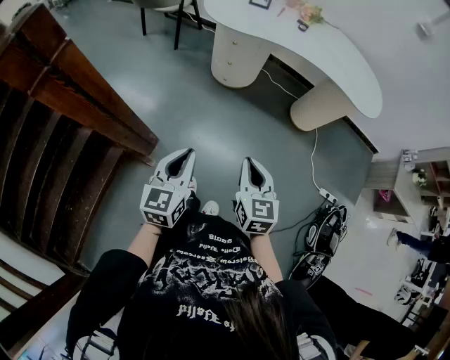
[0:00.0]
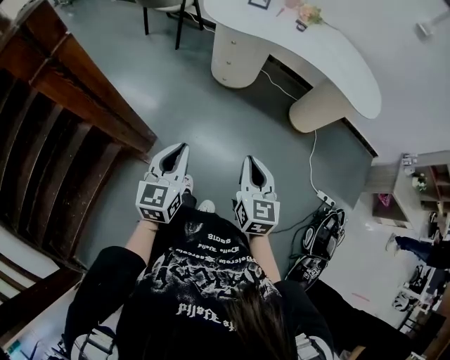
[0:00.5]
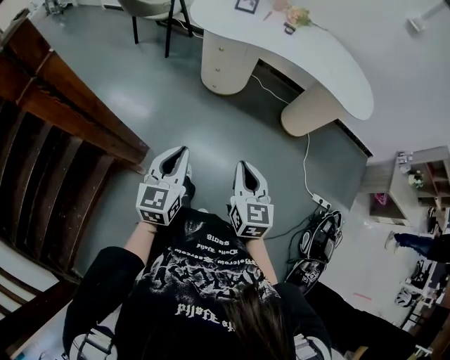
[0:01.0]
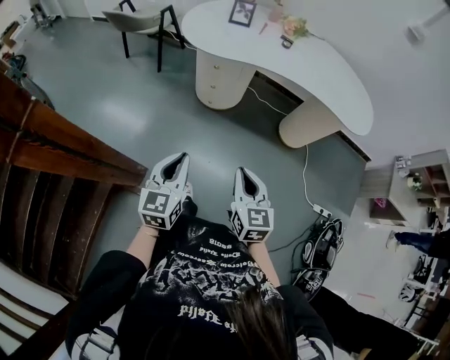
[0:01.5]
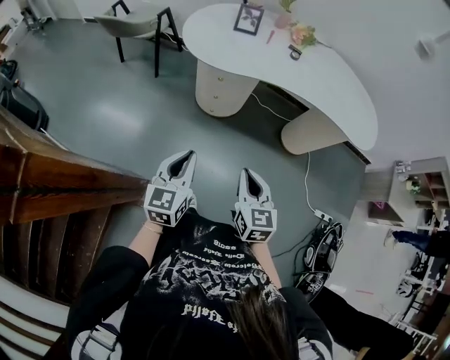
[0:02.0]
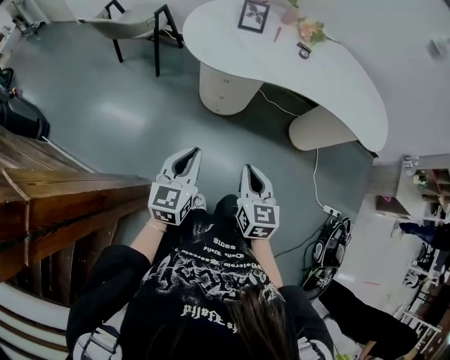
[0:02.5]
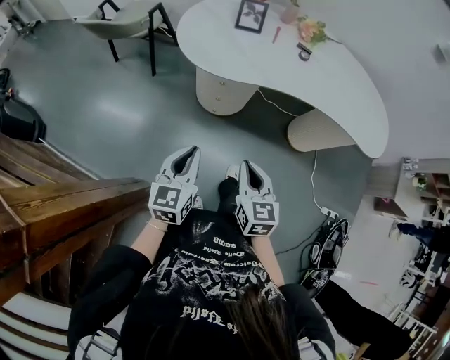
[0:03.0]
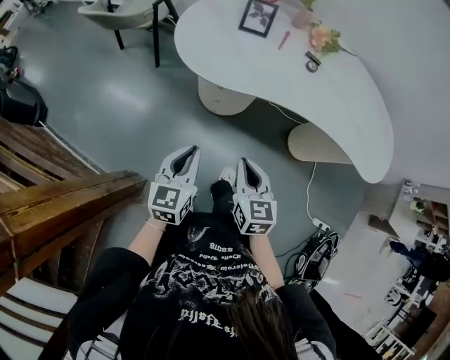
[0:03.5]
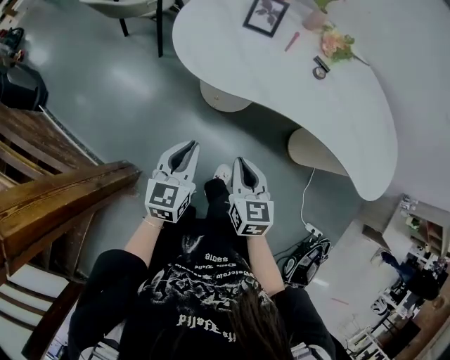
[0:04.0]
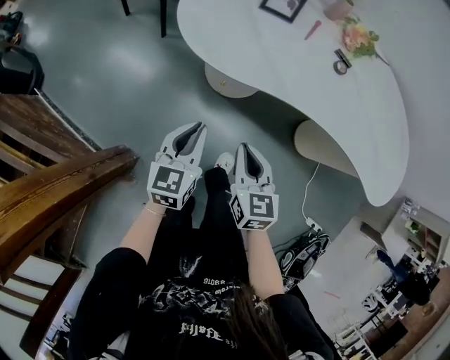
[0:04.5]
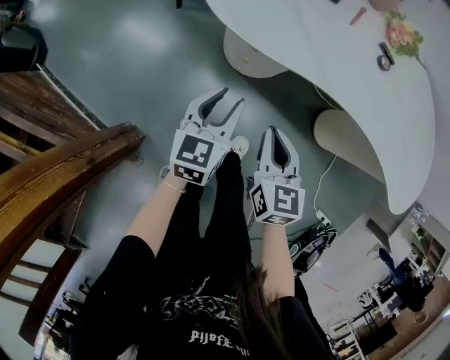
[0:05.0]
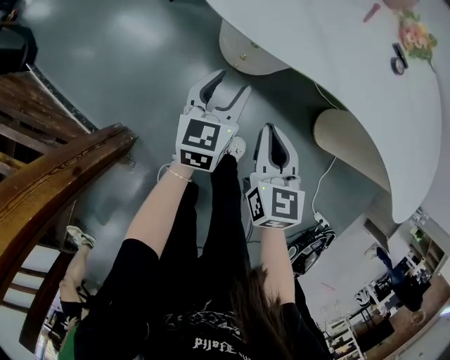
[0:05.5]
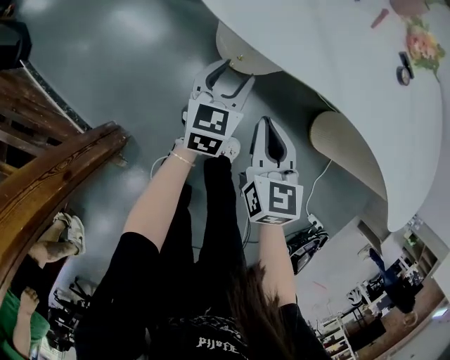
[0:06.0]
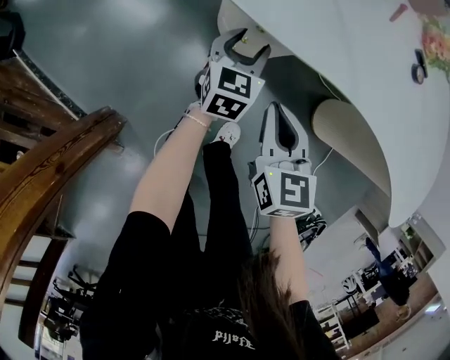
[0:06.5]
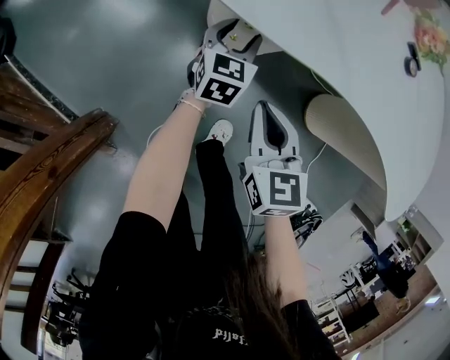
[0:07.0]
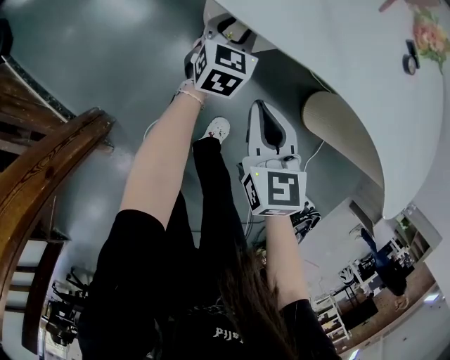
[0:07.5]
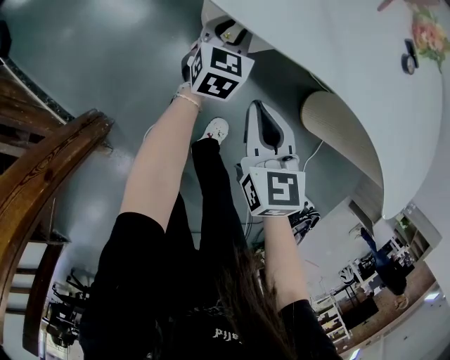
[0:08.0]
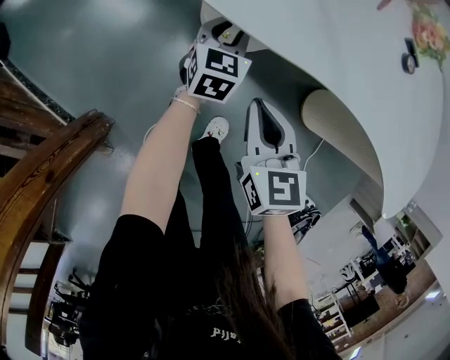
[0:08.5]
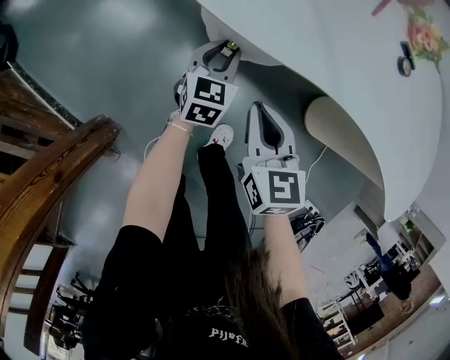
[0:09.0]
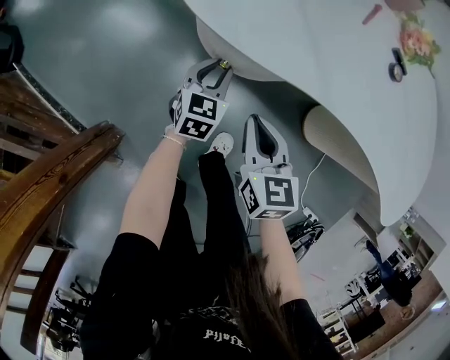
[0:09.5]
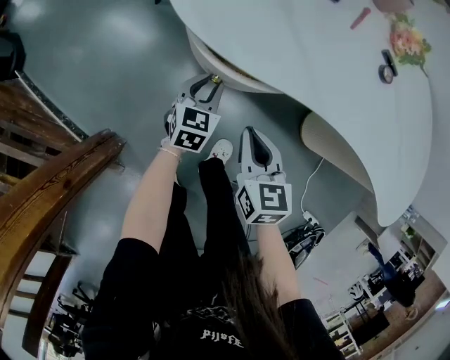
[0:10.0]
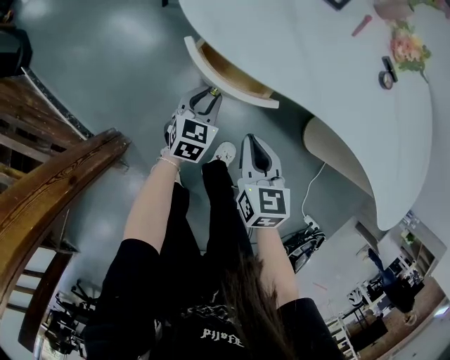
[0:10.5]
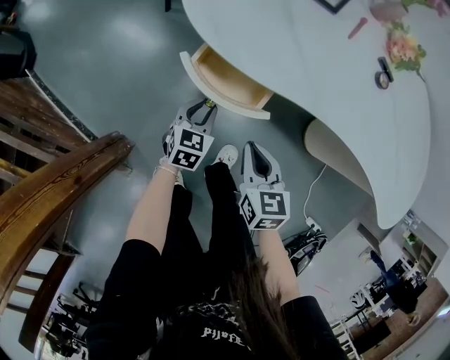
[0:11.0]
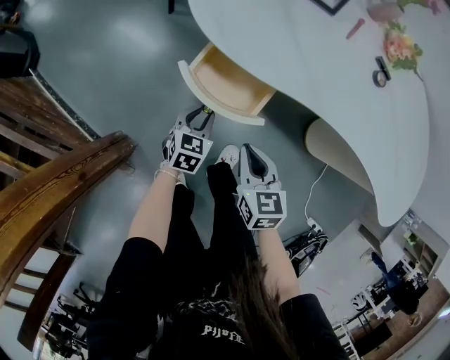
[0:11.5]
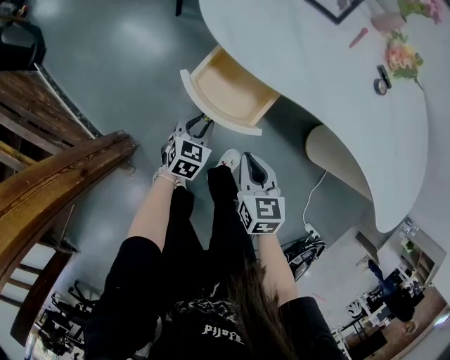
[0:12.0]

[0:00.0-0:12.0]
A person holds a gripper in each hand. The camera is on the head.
0:00.0 to 0:02.0: Both grippers travel together forward, some 25 cm.
0:02.0 to 0:04.0: Both grippers move forward, about 25 cm.
0:04.0 to 0:06.0: Both grippers travel together downward and forward, roughly 25 cm. The left gripper opens its fingers.
0:06.0 to 0:08.0: The left gripper shifts some 10 cm forward and downward, and closes.
0:08.0 to 0:10.0: The left gripper travels backward by about 10 cm.
0:10.0 to 0:12.0: The left gripper heads backward, covering about 10 cm, while the right gripper travels backward by approximately 5 cm.

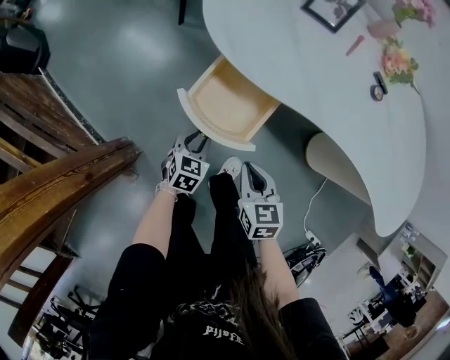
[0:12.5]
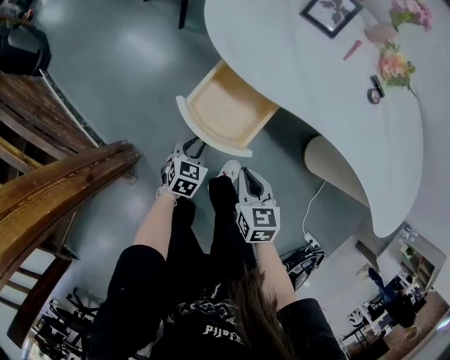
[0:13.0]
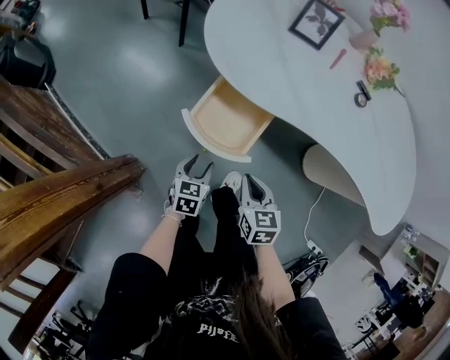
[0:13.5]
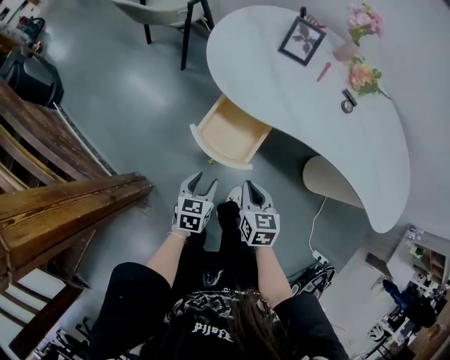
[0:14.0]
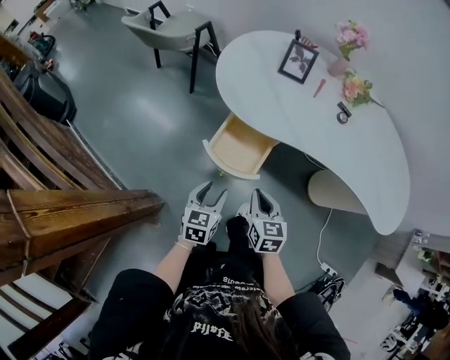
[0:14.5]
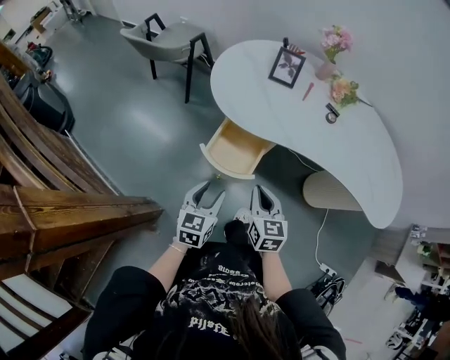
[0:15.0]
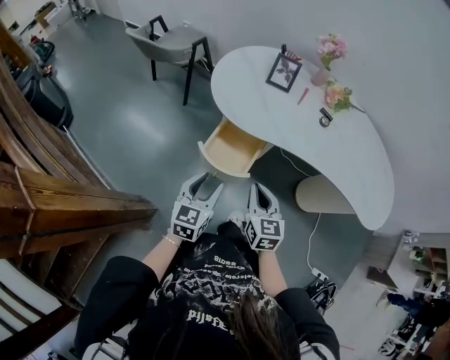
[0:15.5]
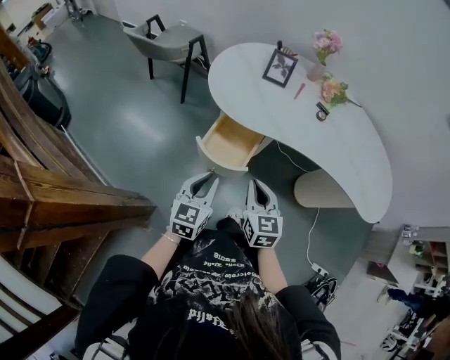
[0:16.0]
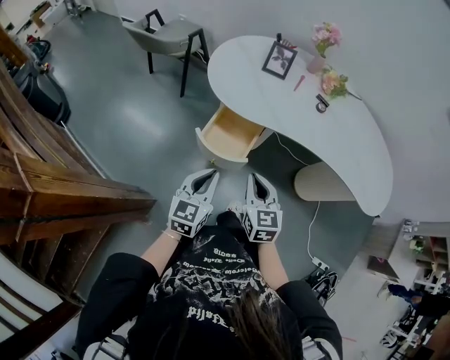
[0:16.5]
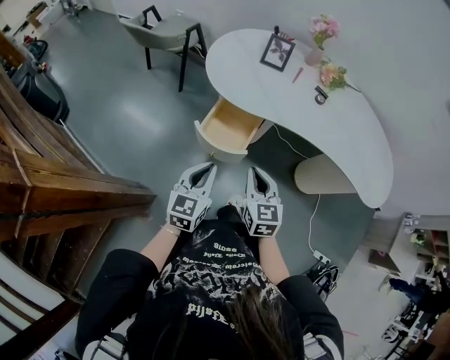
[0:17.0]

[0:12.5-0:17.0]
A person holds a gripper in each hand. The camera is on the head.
0:12.5 to 0:14.5: The left gripper shifts about 20 cm upward, and opens, while the right gripper shifts some 15 cm upward.
0:14.5 to 0:17.0: The grippers both shift upward and backward by approximately 15 cm. The left gripper closes its fingers.

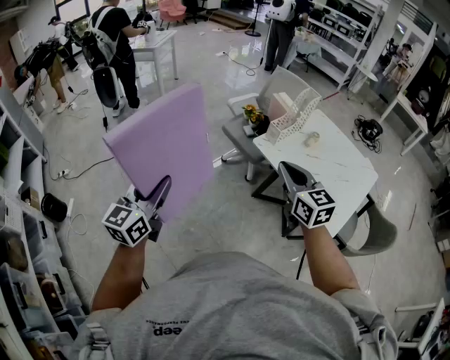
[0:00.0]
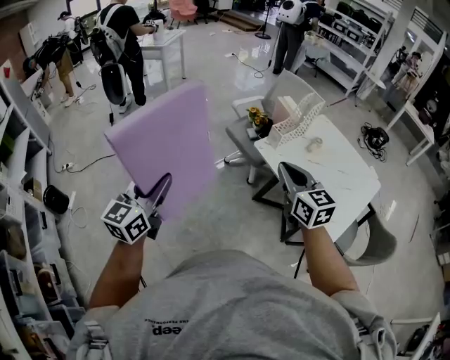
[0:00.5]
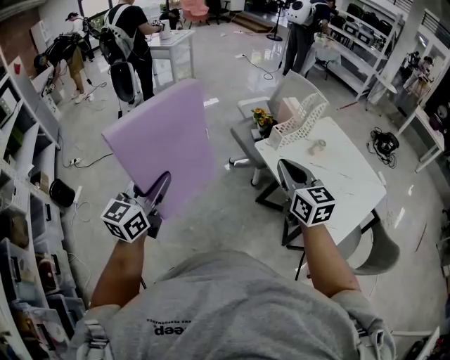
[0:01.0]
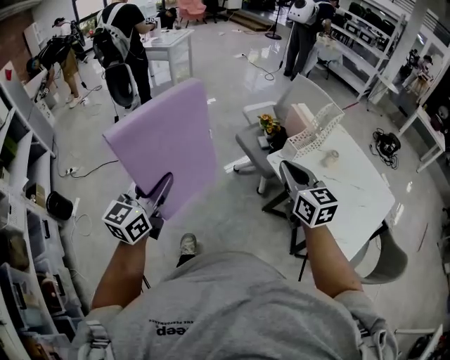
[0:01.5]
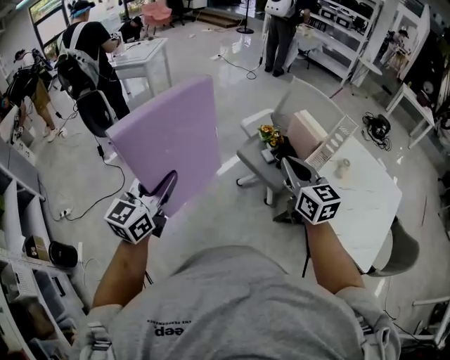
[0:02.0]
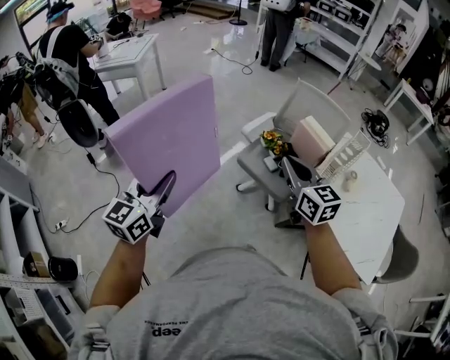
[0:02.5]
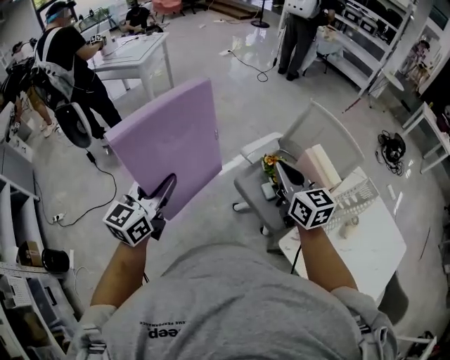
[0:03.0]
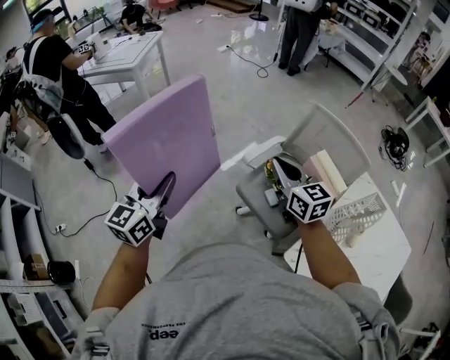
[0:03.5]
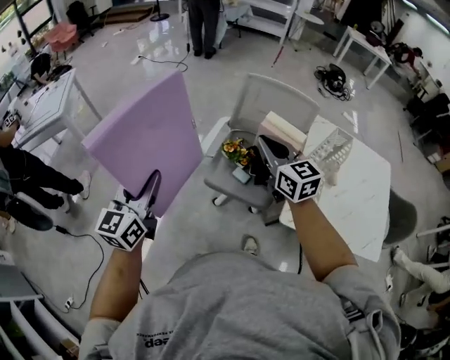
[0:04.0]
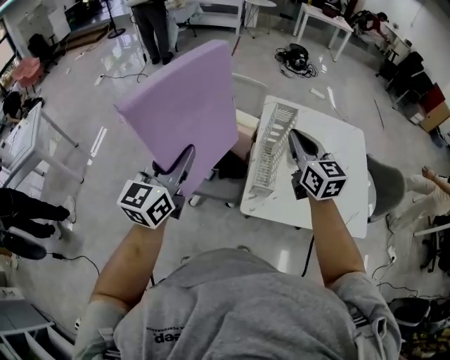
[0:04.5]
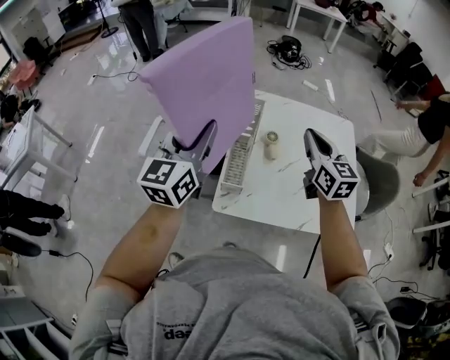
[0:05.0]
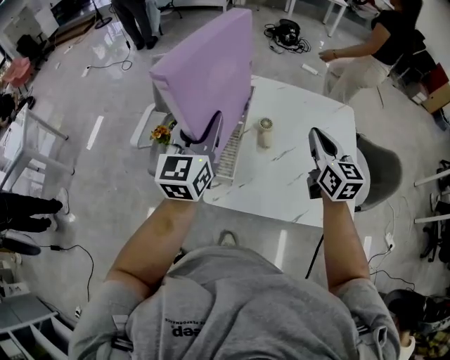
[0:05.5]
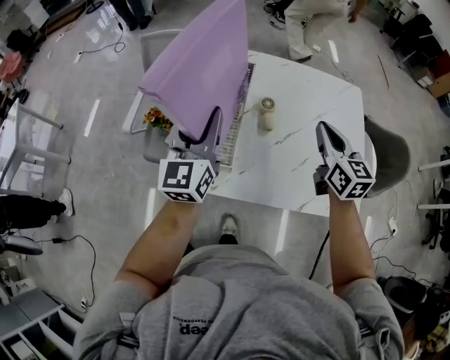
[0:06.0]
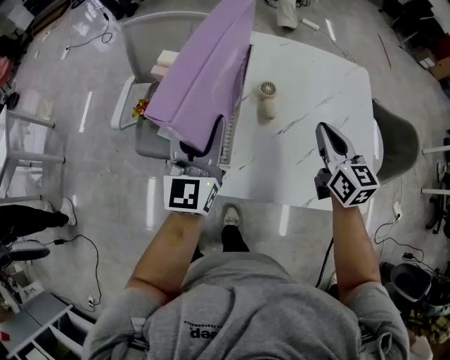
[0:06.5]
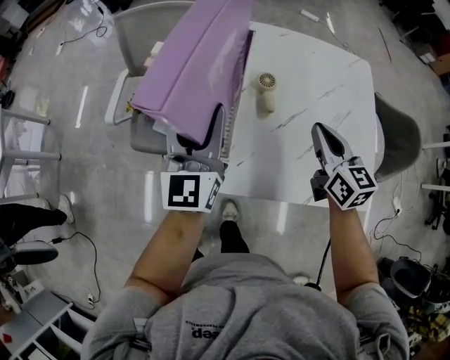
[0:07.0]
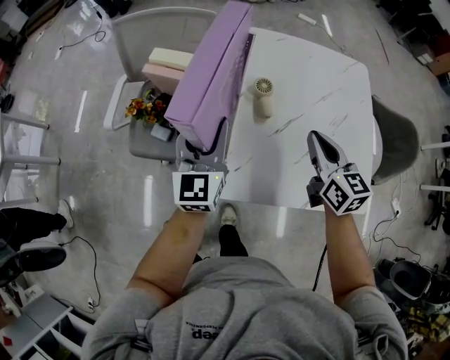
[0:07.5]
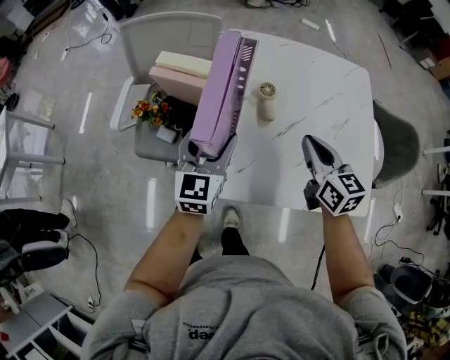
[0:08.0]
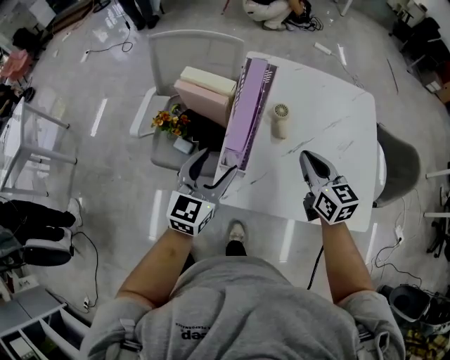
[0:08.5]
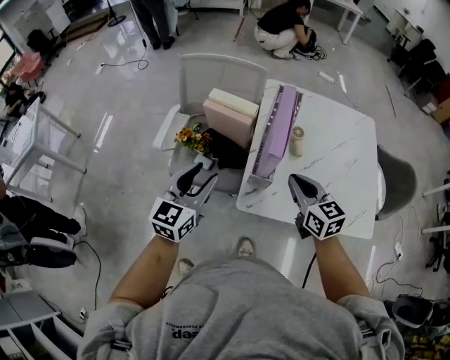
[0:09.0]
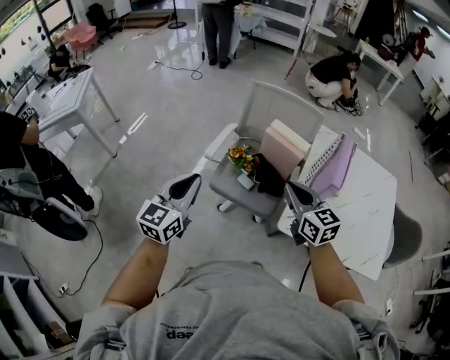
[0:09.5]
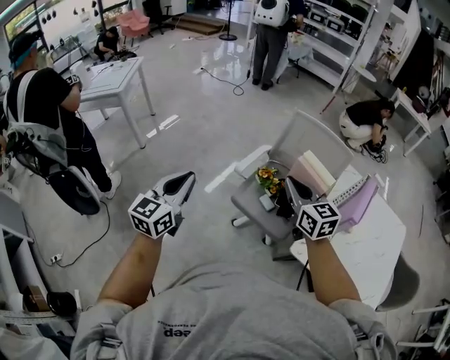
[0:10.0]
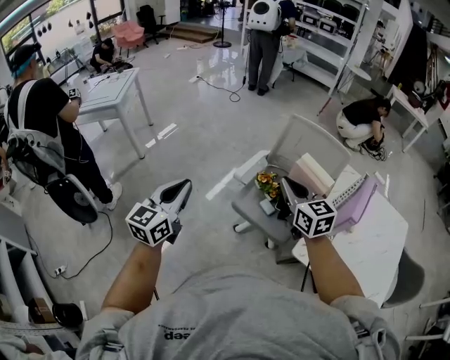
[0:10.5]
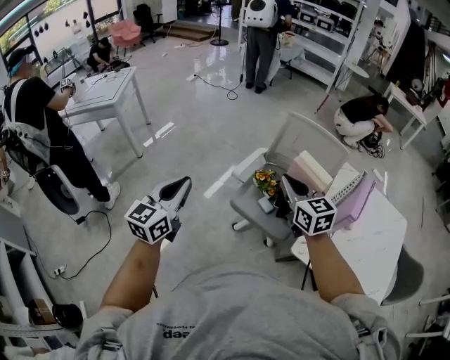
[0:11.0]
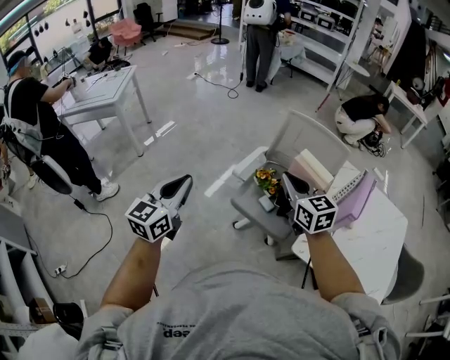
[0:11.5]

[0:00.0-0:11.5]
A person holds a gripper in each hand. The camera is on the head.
0:00.0 to 0:02.0: The right gripper travels forward and to the left by about 30 cm. Meanwhile the left gripper goes approximately 35 cm forward.
0:02.0 to 0:04.0: The two grippers go roughly 40 cm forward.
0:04.0 to 0:06.0: The pair of grippers is taken to the right, some 60 cm. The right gripper changes its angle by about 30 degrees.
0:06.0 to 0:07.5: Both grippers move downward, about 10 cm.
0:07.5 to 0:09.5: The two grippers travel together, to the left, some 40 cm. The right gripper swivels approximately 30 degrees, while the left gripper closes up.
0:09.5 to 0:11.5: The right gripper heads to the left, forward and upward, covering roughly 15 cm. Meanwhile the left gripper moves to the left and upward, some 15 cm.
